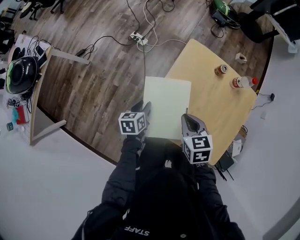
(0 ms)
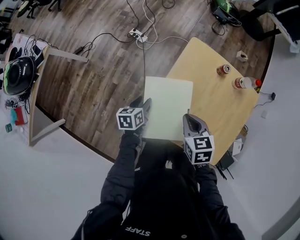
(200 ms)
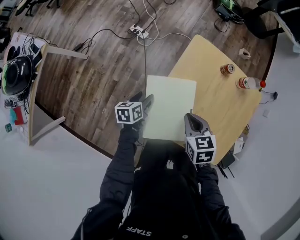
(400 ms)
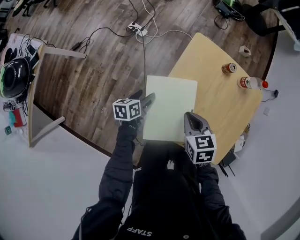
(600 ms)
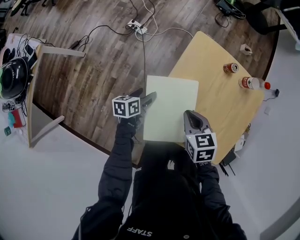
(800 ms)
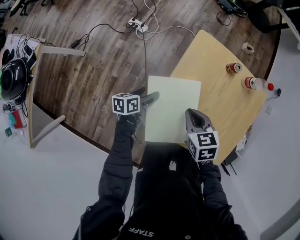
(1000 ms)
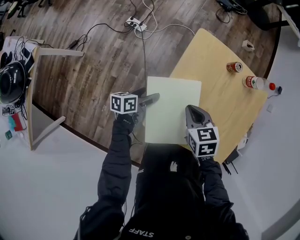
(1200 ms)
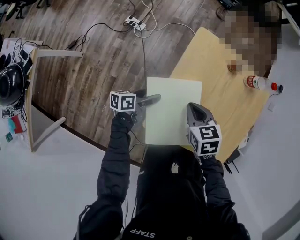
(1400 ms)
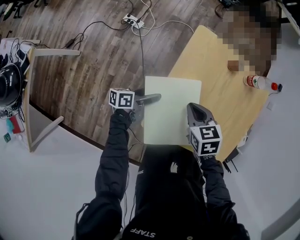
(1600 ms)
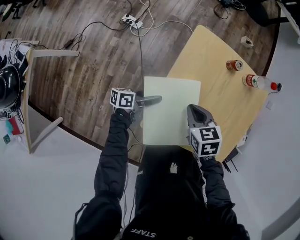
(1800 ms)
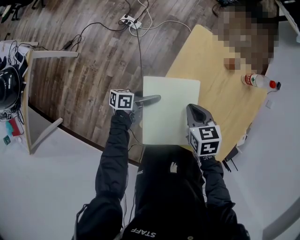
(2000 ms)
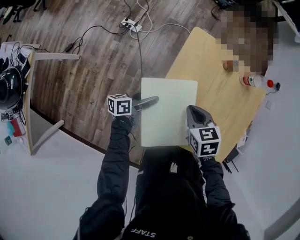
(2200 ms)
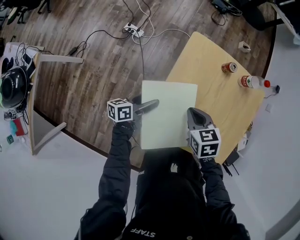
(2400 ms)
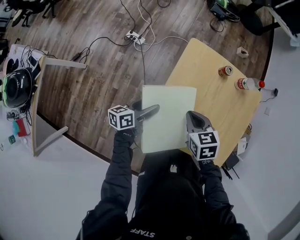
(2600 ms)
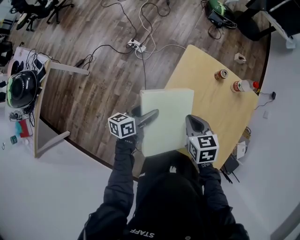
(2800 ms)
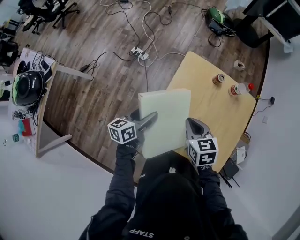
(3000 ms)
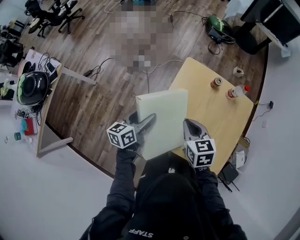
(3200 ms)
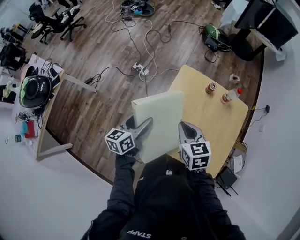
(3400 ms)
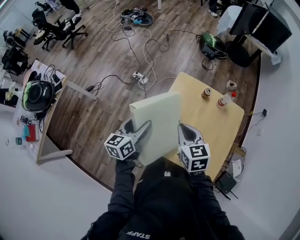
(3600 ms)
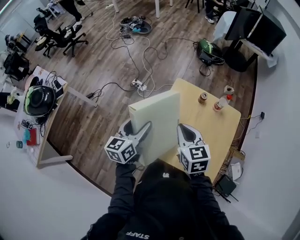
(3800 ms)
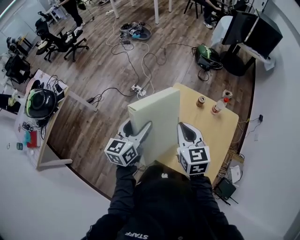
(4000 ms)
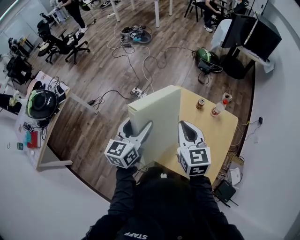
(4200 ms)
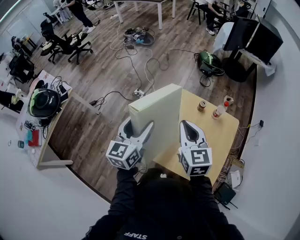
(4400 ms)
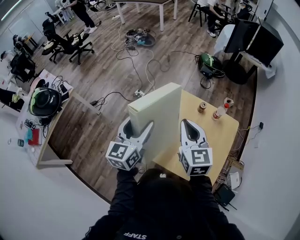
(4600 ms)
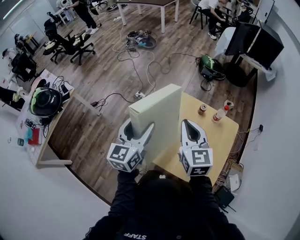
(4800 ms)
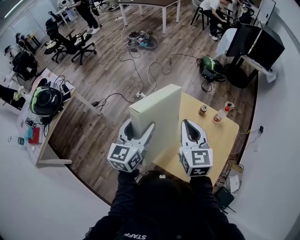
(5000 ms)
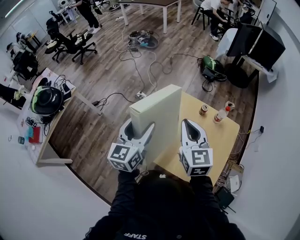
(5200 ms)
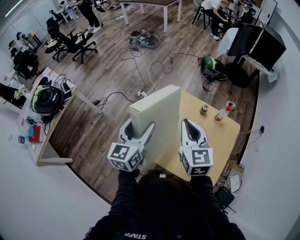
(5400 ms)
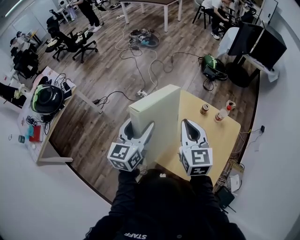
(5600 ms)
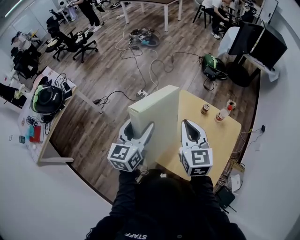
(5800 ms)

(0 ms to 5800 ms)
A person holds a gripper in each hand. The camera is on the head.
0 ms - 1400 ms: Both grippers travel together downward and forward, approximately 10 cm. The left gripper turns by approximately 40 degrees, and opens its fingers.
1400 ms - 2800 ms: The right gripper shifts roughly 10 cm upward. Meanwhile the left gripper moves upward, approximately 15 cm, and swivels some 20 degrees.
2800 ms - 4400 ms: The two grippers go approximately 30 cm upward. The left gripper rotates roughly 50 degrees; the right gripper angles its fingers upward, by some 30 degrees.
4400 ms - 5800 ms: There are only small adjustments of the grippers.

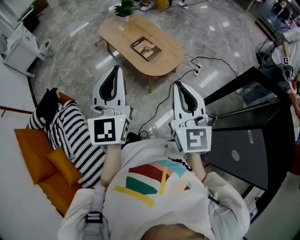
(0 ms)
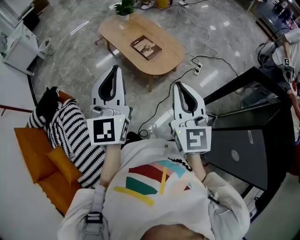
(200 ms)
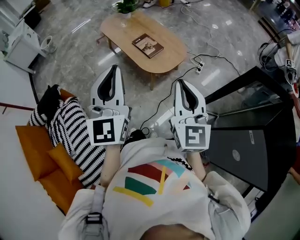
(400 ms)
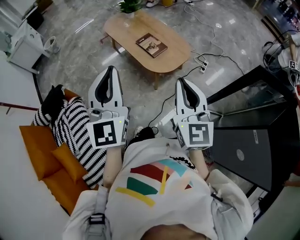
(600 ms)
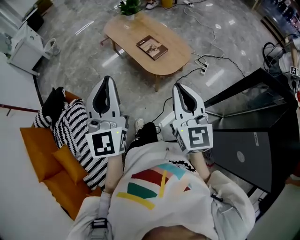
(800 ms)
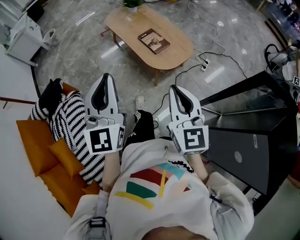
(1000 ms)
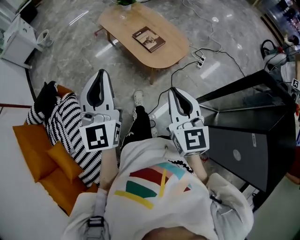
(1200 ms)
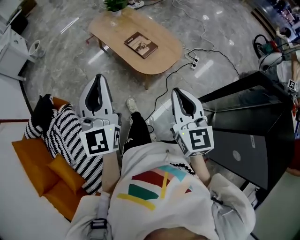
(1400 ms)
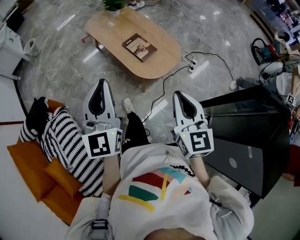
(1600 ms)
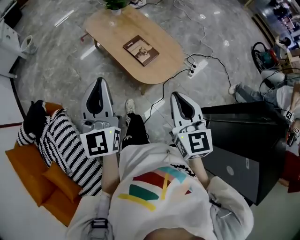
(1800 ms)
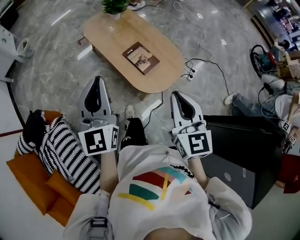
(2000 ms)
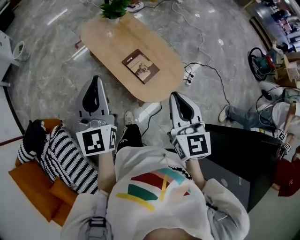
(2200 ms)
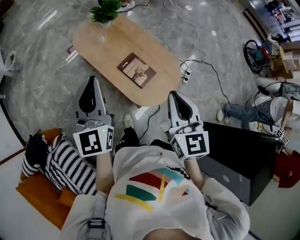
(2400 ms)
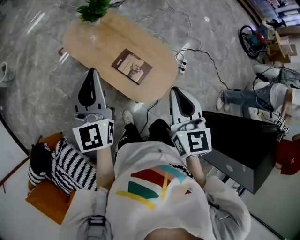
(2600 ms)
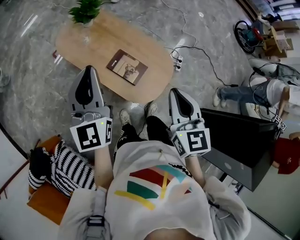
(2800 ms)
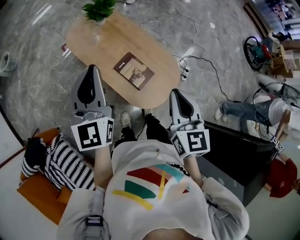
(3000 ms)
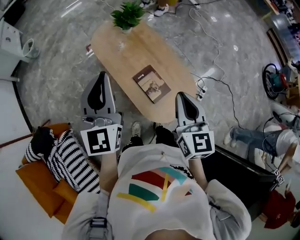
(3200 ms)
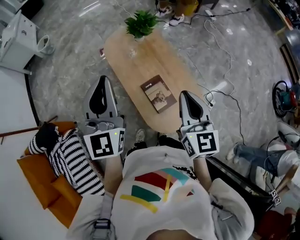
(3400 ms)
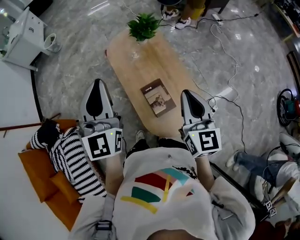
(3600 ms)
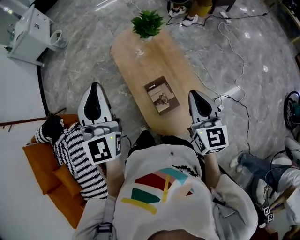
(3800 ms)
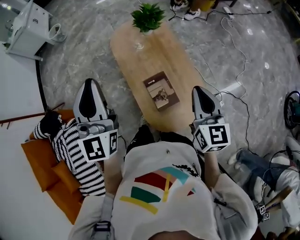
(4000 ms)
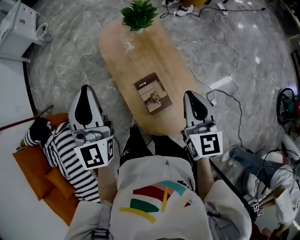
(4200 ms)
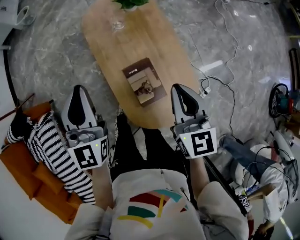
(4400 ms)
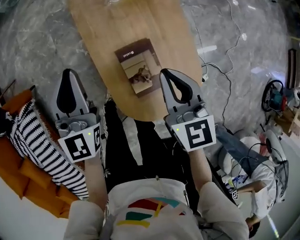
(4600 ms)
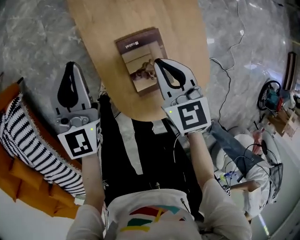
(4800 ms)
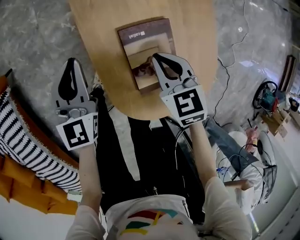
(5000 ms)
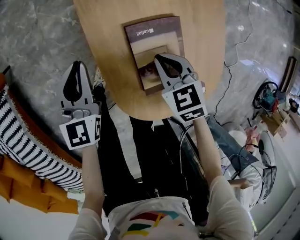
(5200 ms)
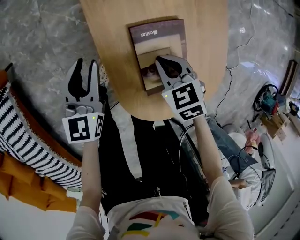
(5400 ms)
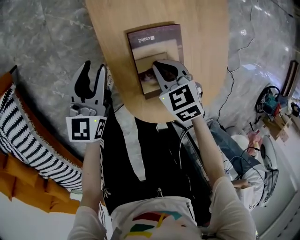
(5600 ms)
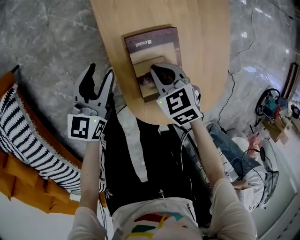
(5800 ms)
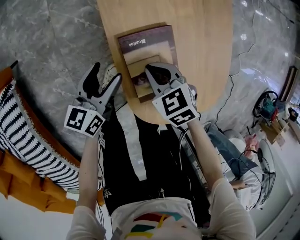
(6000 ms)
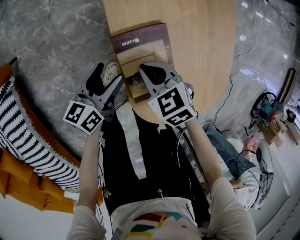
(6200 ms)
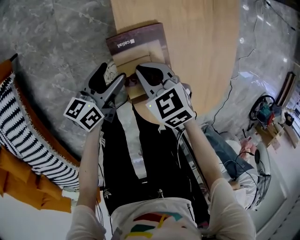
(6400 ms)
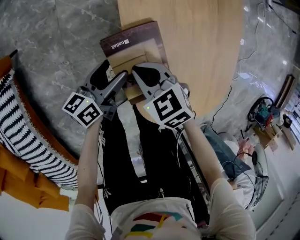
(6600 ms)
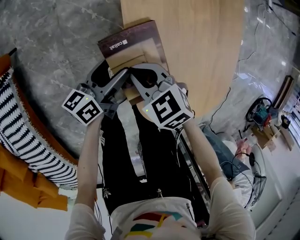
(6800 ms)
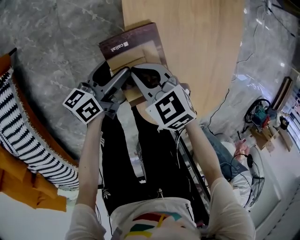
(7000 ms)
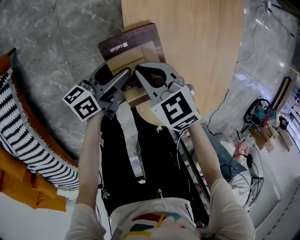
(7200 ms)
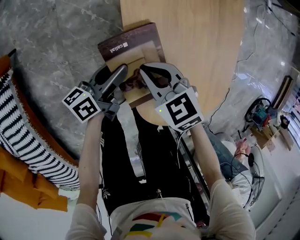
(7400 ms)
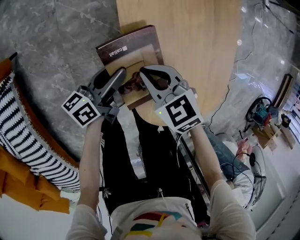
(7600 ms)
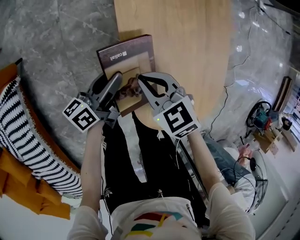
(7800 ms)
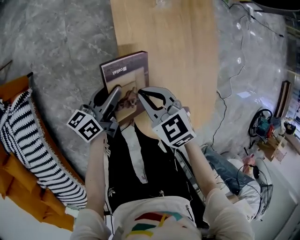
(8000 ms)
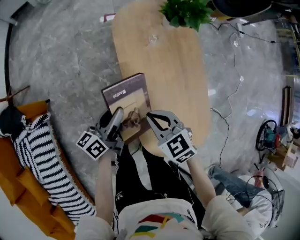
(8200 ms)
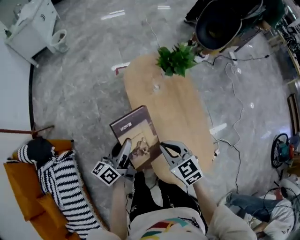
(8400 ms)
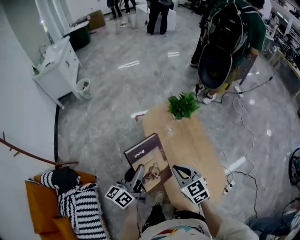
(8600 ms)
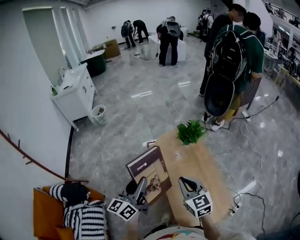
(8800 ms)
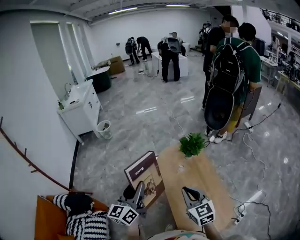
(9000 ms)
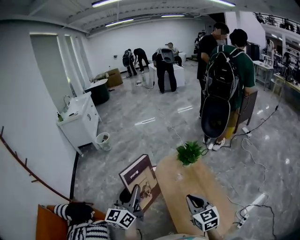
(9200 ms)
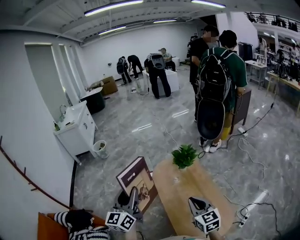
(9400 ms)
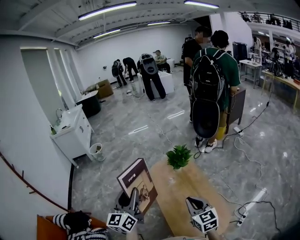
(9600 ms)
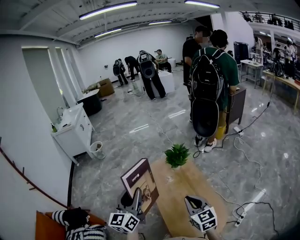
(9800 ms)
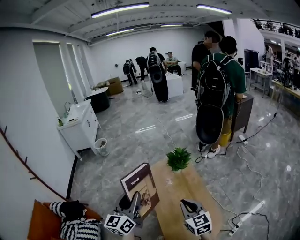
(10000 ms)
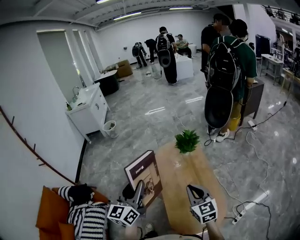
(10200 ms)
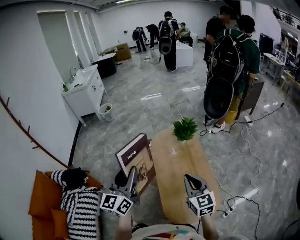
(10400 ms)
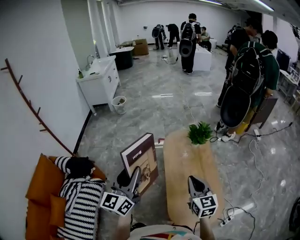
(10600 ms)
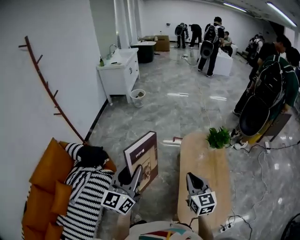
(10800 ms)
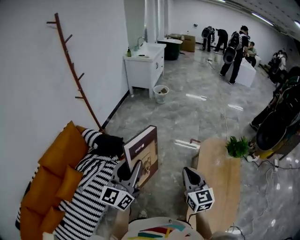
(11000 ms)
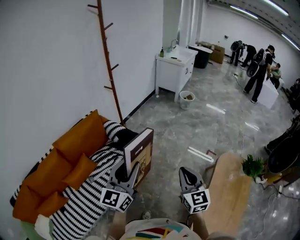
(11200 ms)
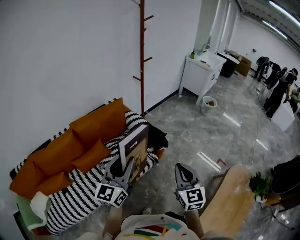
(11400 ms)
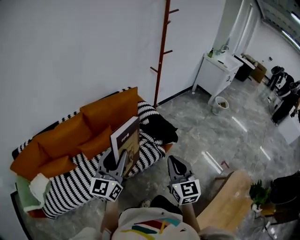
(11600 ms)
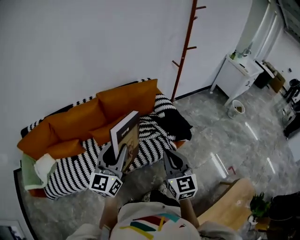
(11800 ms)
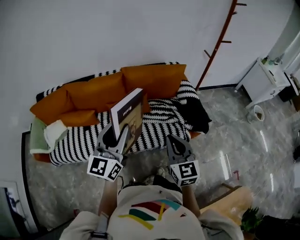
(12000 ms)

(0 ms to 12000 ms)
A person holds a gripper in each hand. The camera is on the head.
0 ms - 1600 ms: The right gripper goes about 10 cm forward and downward, while the left gripper heads forward, downward and to the left, covering approximately 10 cm.
1600 ms - 3000 ms: Both grippers travel together forward, roughly 35 cm.
3000 ms - 4400 ms: The right gripper changes place by some 20 cm, and swivels approximately 30 degrees, while the left gripper is displaced downward by some 10 cm, and rotates about 30 degrees.
4400 ms - 6000 ms: The right gripper travels downward and to the left by roughly 40 cm, and tilts its fingers approximately 40 degrees downward. The left gripper shifts about 40 cm downward, rolls counterclockwise, seen from behind, by roughly 40 degrees, and opens up.
6000 ms - 7600 ms: The left gripper swivels approximately 30 degrees, and closes up; the right gripper travels to the left by approximately 5 cm.
7600 ms - 9000 ms: Both grippers move upward, some 50 cm. The left gripper rotates around the line of its fingers by approximately 60 degrees, clockwise from behind, while the right gripper angles its fingers upward, by approximately 40 degrees.
9000 ms - 10400 ms: The right gripper goes some 10 cm to the right and backward; the left gripper heads backward, covering roughly 10 cm.
10400 ms - 12000 ms: The two grippers travel together, roughly 70 cm. The left gripper rotates approximately 80 degrees, while the right gripper swivels about 80 degrees.

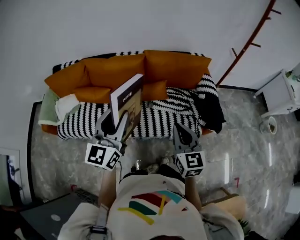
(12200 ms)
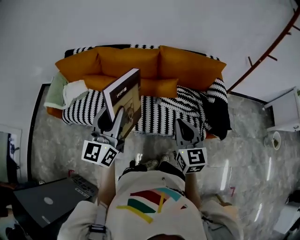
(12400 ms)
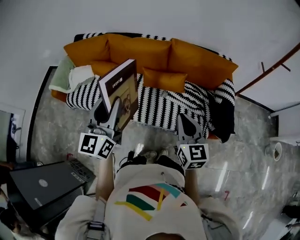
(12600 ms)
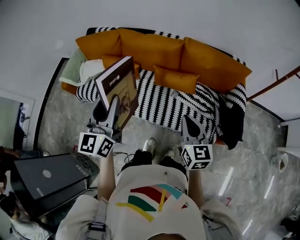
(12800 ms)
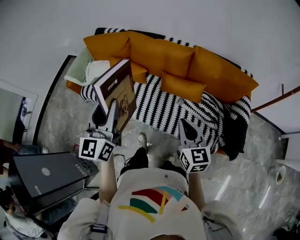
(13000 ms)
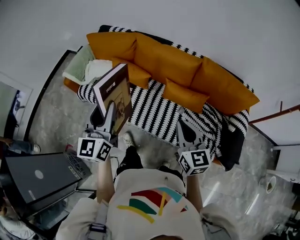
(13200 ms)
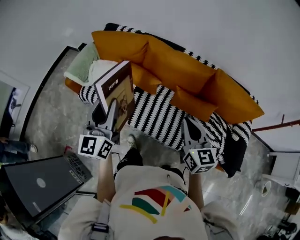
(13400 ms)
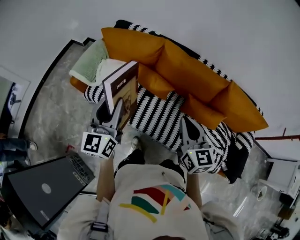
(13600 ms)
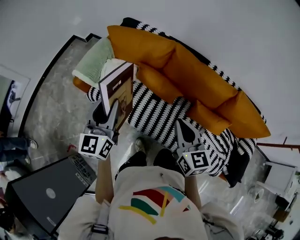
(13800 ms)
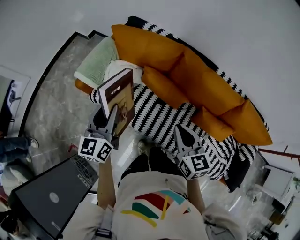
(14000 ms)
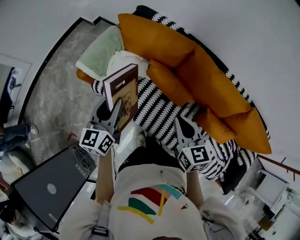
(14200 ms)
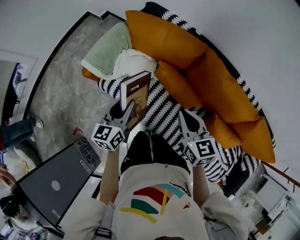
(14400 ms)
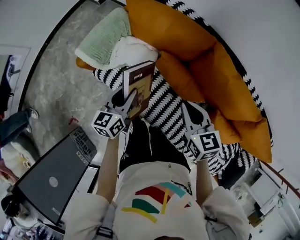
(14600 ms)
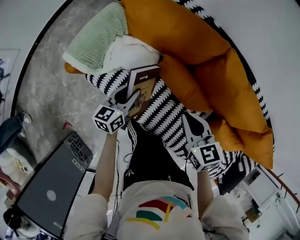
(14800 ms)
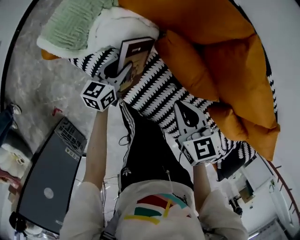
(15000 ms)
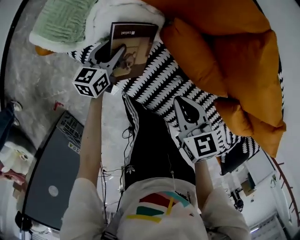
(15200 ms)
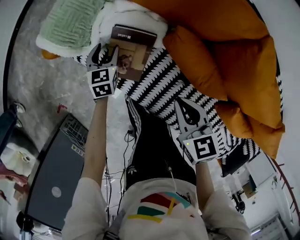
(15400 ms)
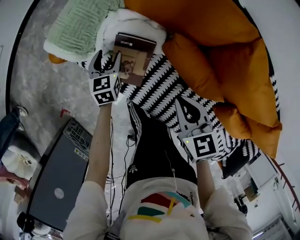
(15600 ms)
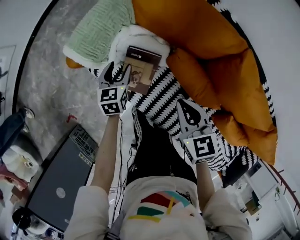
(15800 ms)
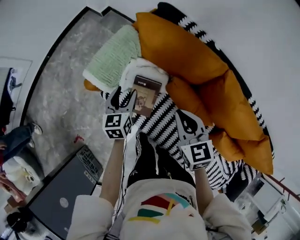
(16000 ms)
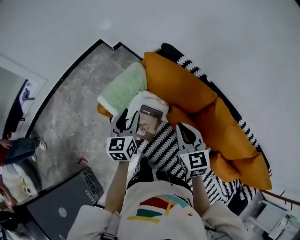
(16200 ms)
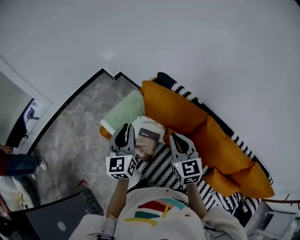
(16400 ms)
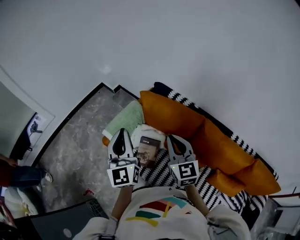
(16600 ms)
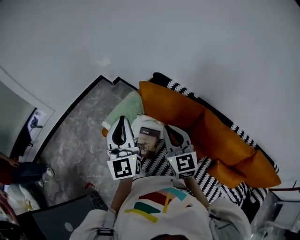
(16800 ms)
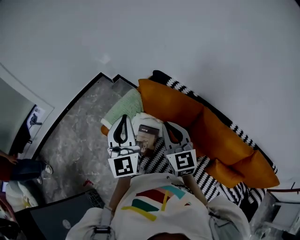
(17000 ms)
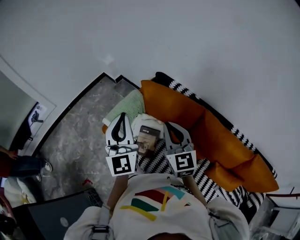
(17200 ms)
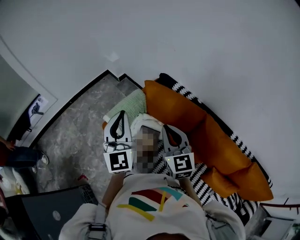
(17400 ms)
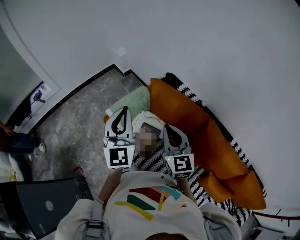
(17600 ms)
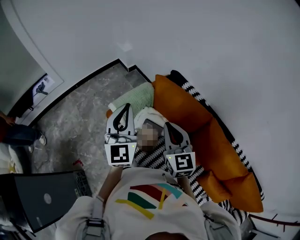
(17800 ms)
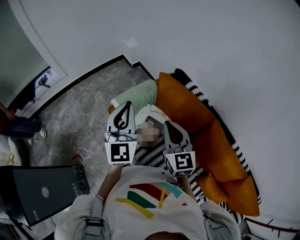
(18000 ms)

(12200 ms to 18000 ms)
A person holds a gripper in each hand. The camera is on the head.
12200 ms - 13600 ms: Both grippers are carried roughly 40 cm. The left gripper turns by approximately 30 degrees; the right gripper swivels about 30 degrees.
13600 ms - 15000 ms: The left gripper is displaced downward and forward by roughly 50 cm, and changes its angle by some 30 degrees, while the right gripper travels downward, forward and to the left by approximately 40 cm, and swivels approximately 40 degrees.
15000 ms - 16600 ms: The right gripper heads upward, covering some 35 cm, and turns by some 40 degrees; the left gripper shifts roughly 50 cm upward, tips its fingers upward by roughly 30 degrees, and closes.
16600 ms - 18000 ms: The right gripper goes approximately 5 cm to the left.
